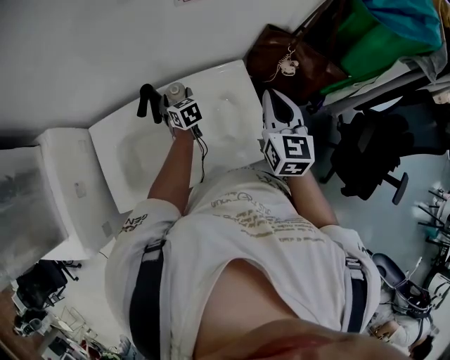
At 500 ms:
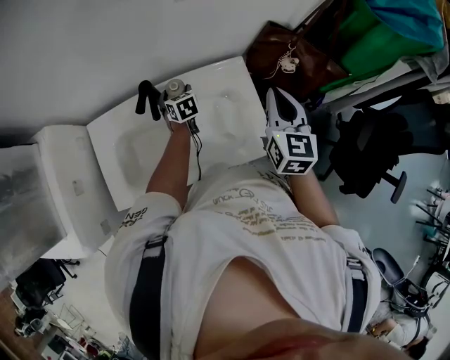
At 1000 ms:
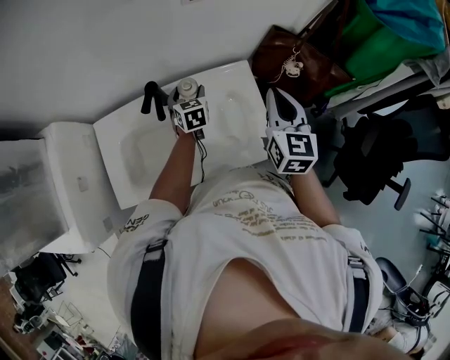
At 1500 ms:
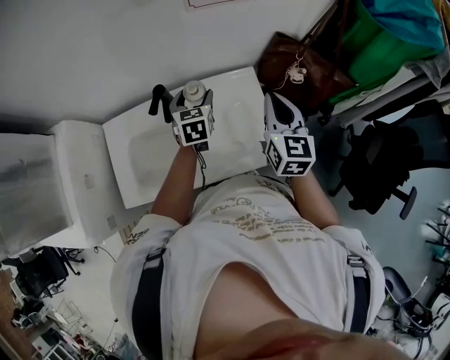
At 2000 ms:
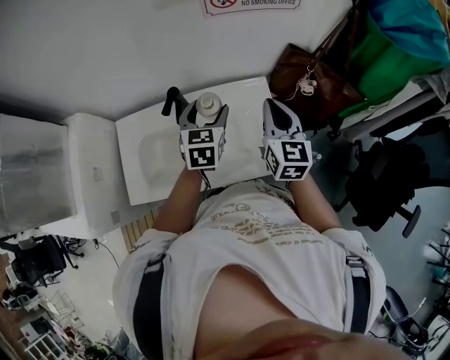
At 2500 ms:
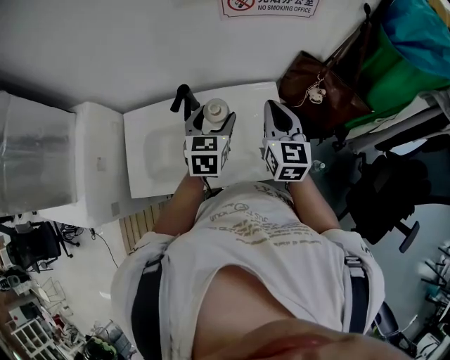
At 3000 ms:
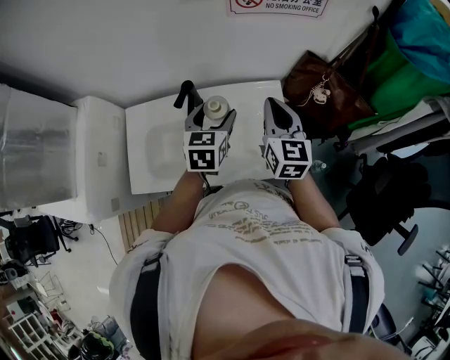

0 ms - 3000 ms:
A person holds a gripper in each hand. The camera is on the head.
0 ms - 1500 ms: The left gripper travels upward and to the right by approximately 15 cm.
1500 ms - 3000 ms: The right gripper travels to the left by roughly 5 cm; the left gripper moves backward and upward, some 10 cm.

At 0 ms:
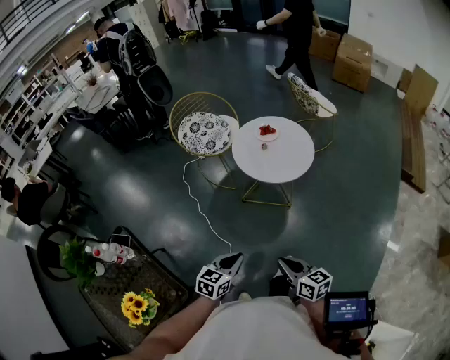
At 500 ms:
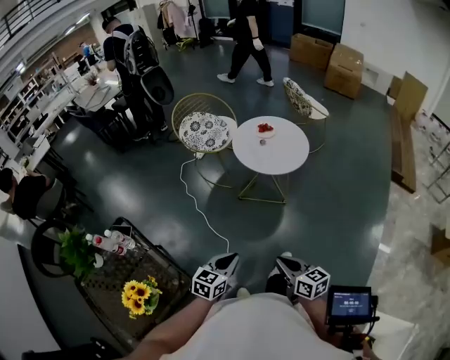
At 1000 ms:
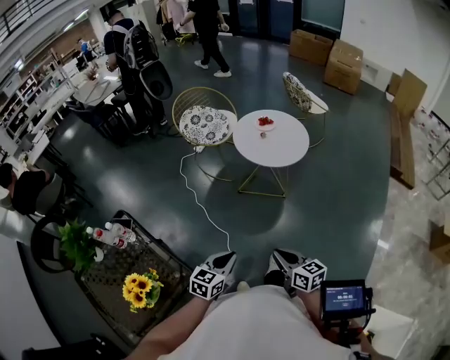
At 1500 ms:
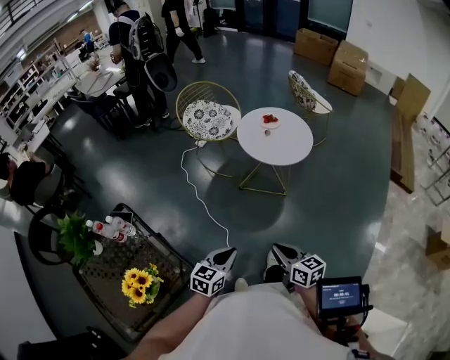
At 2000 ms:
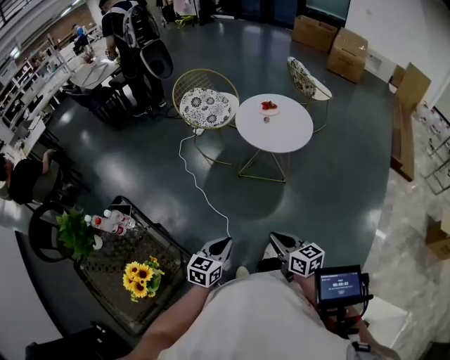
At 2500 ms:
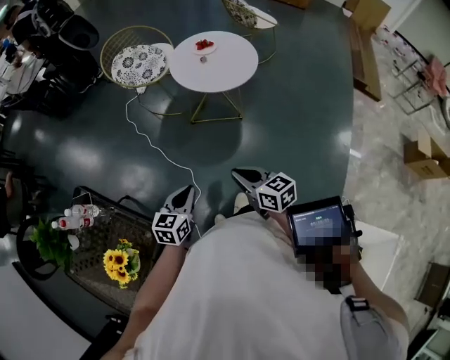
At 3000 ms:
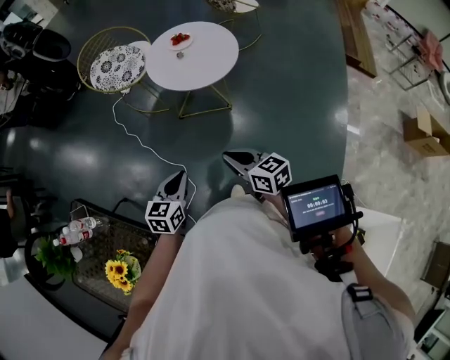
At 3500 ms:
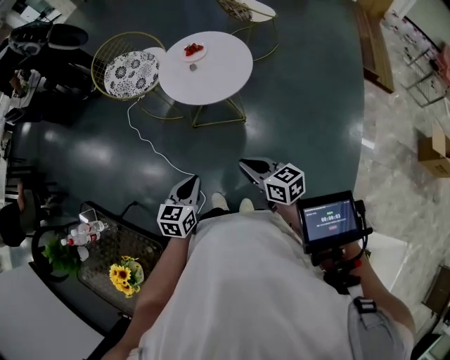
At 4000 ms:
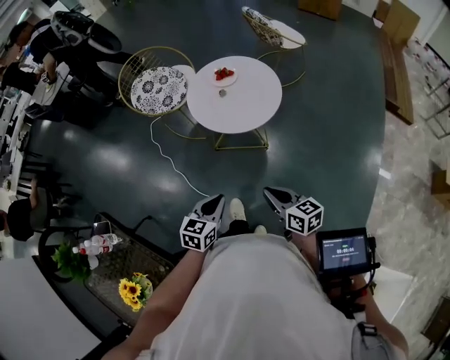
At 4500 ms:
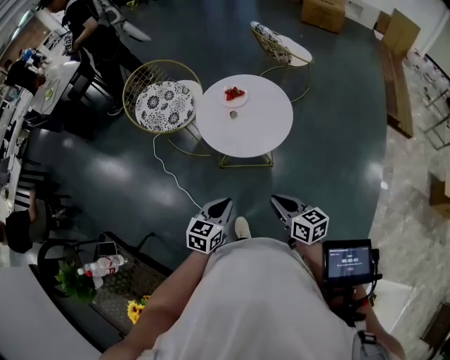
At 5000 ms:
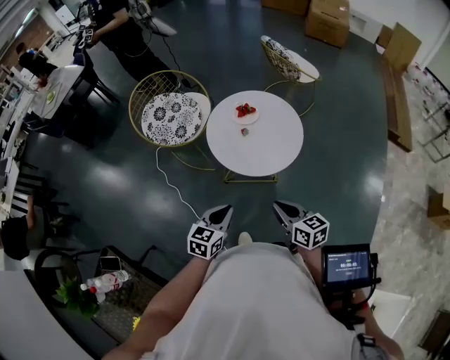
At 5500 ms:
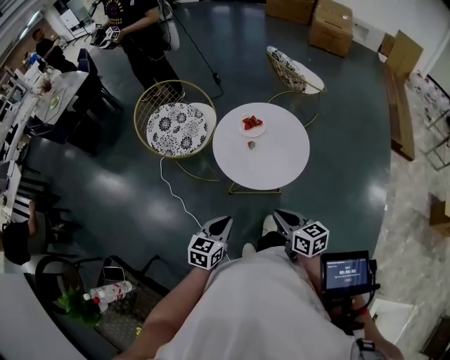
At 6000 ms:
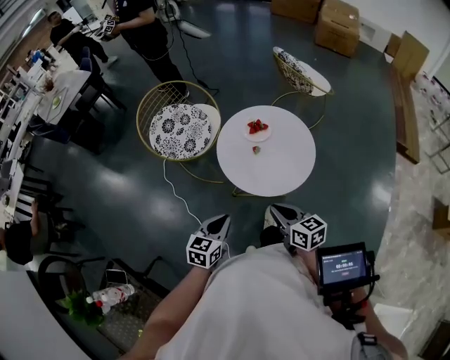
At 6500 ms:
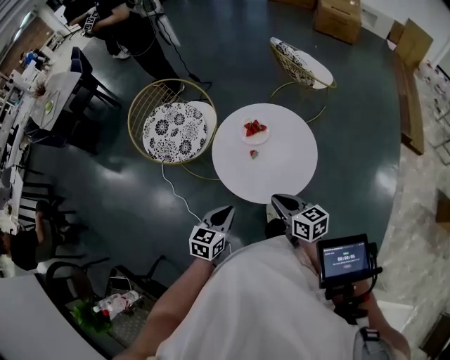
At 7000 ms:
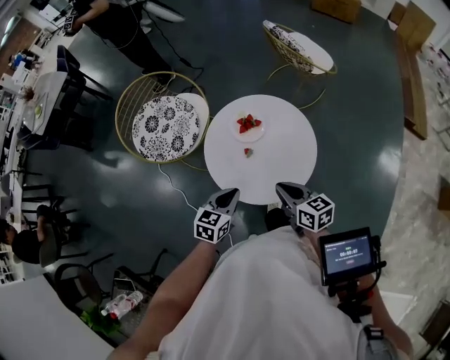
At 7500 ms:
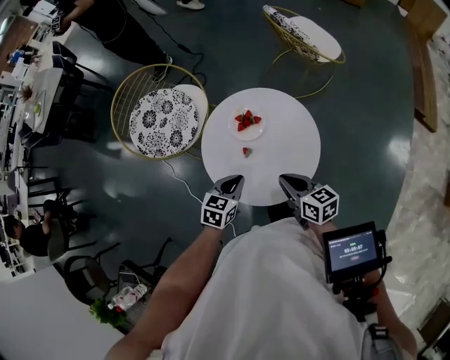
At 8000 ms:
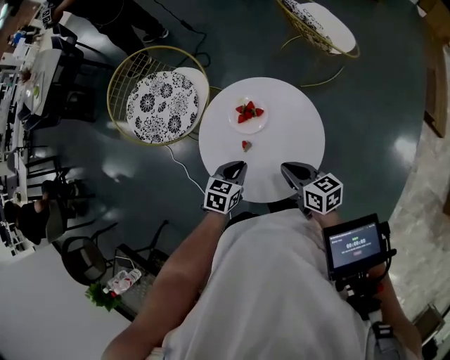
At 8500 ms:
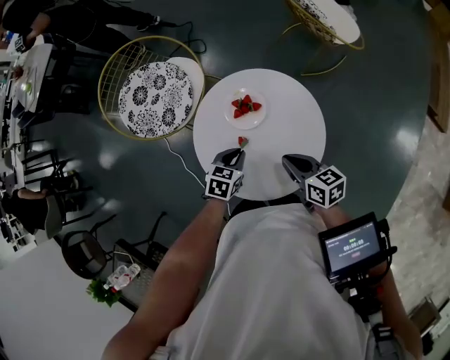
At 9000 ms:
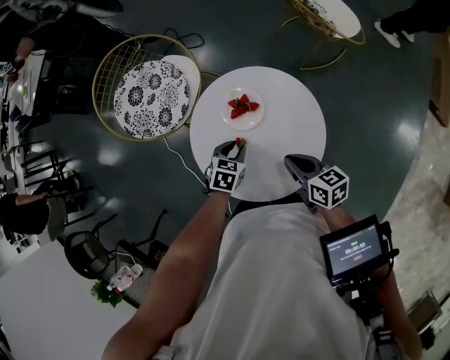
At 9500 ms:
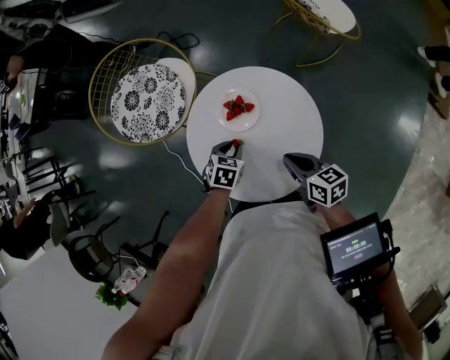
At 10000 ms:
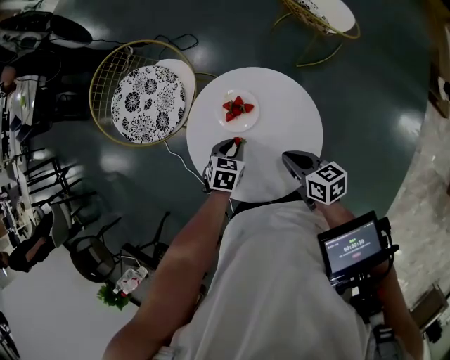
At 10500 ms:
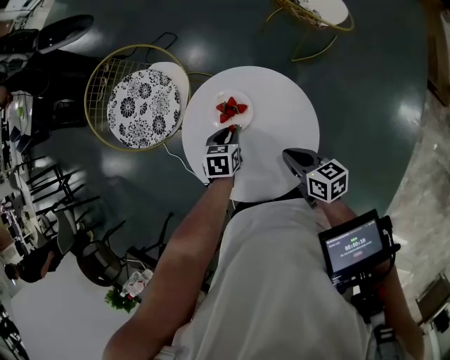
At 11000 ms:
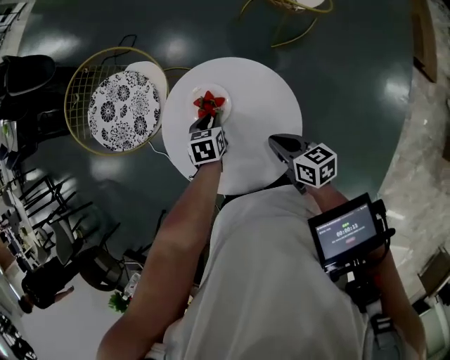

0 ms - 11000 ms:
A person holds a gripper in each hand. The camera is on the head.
0 ms - 2000 ms: The right gripper is displaced to the left and backward by roughly 10 cm; the left gripper moves backward and to the left, about 15 cm.
2000 ms - 3500 ms: The two grippers go approximately 20 cm forward and to the right.
3500 ms - 5500 ms: Both grippers move forward, roughly 20 cm.
5500 ms - 7500 ms: Both grippers move forward, about 25 cm.
7500 ms - 9000 ms: The left gripper moves downward and forward, some 15 cm. The right gripper shifts roughly 10 cm forward and downward.
9000 ms - 11000 ms: The left gripper travels forward by approximately 10 cm.

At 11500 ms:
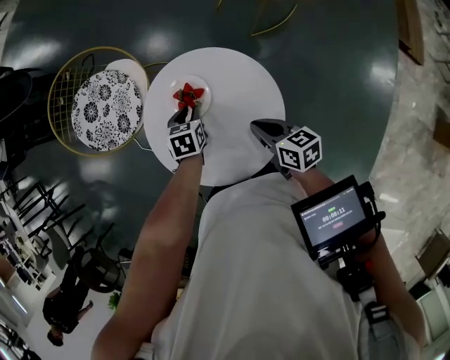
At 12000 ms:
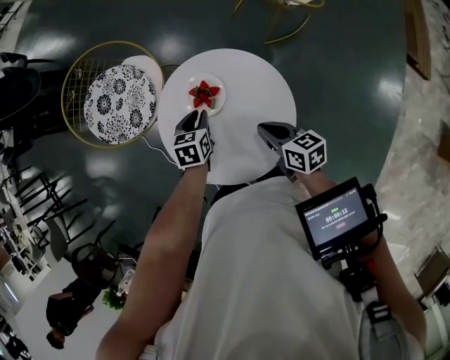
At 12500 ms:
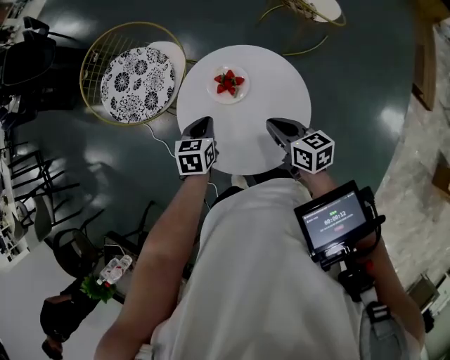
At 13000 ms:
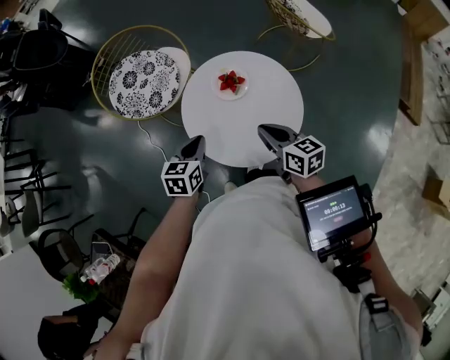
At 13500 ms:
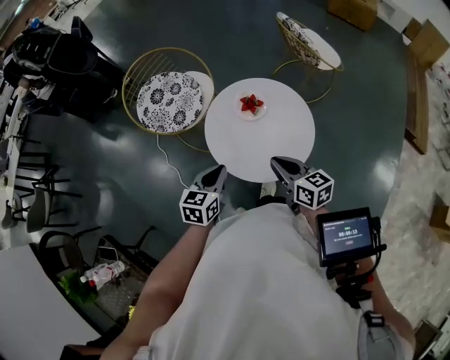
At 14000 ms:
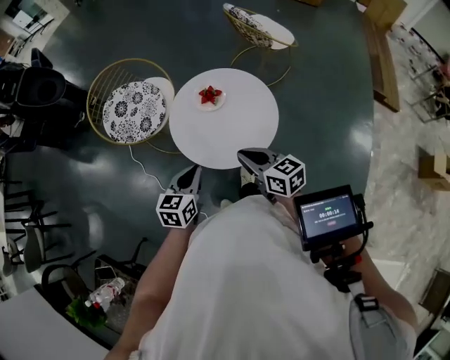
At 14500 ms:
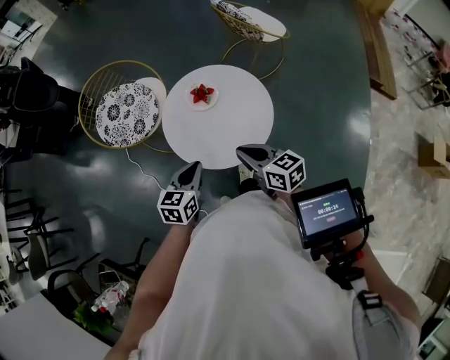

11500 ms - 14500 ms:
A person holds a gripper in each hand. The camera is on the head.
11500 ms - 13000 ms: The right gripper heads upward and to the left, covering roughly 15 cm. The left gripper shifts approximately 25 cm backward, upward and to the left, and swivels about 20 degrees.
13000 ms - 14500 ms: Both grippers travel together backward, roughly 10 cm.

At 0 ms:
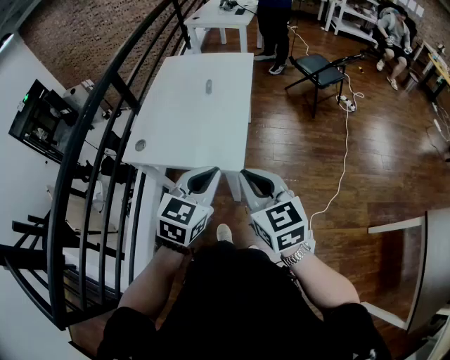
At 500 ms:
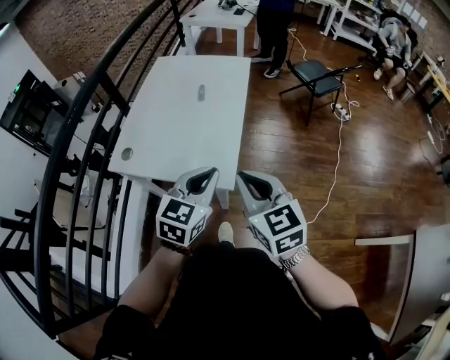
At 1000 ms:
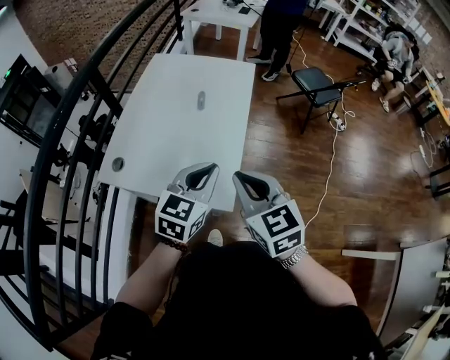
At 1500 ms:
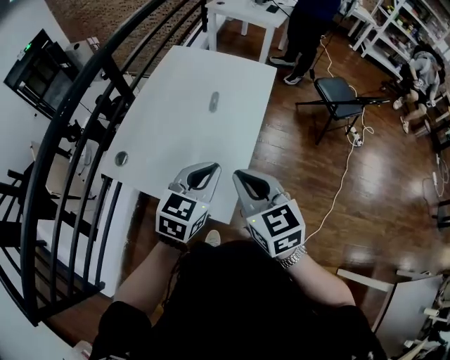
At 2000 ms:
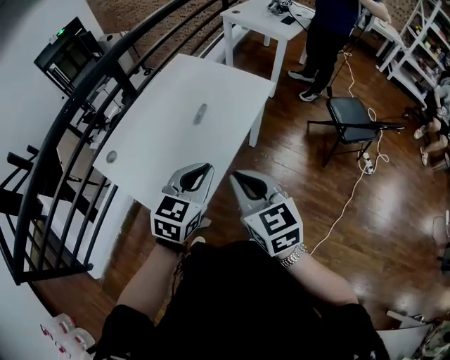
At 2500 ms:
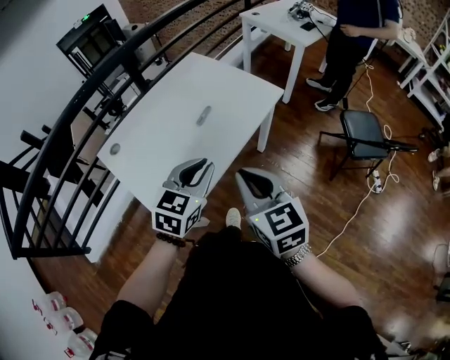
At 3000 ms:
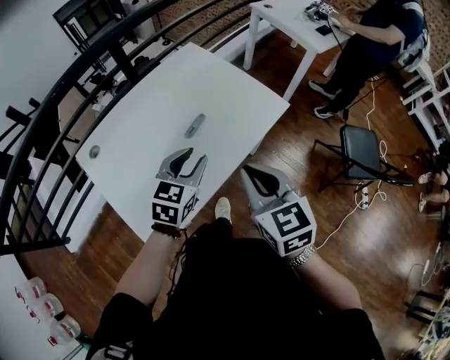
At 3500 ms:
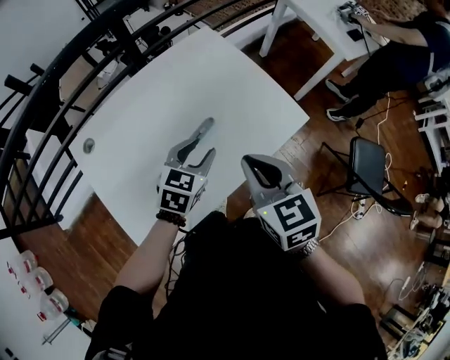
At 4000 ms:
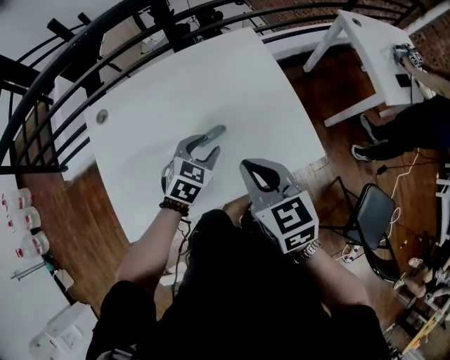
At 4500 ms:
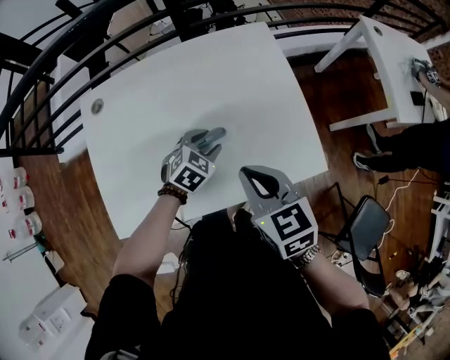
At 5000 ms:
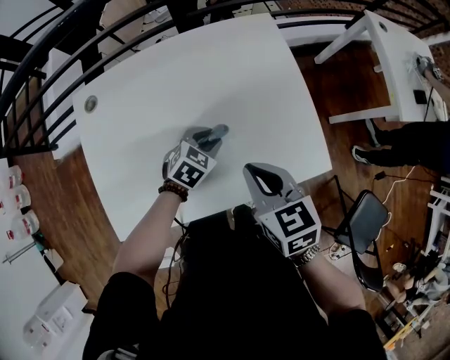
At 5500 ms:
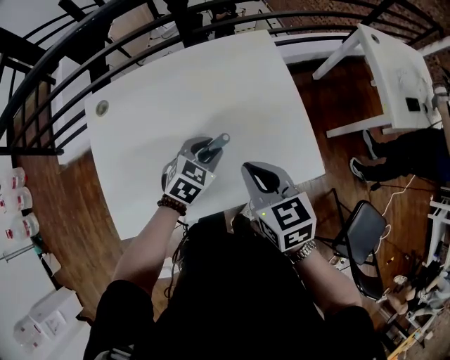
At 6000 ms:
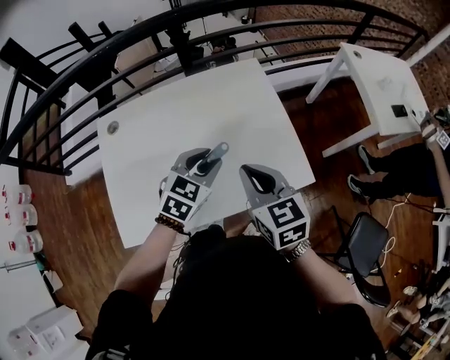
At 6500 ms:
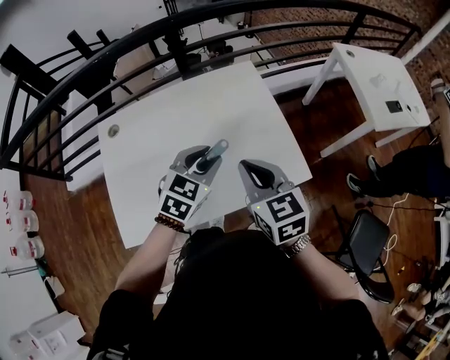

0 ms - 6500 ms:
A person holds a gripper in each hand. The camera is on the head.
0 ms - 2000 ms: The two grippers go some 30 cm forward and to the right. The right gripper rotates some 20 degrees, while the left gripper rotates about 20 degrees.
2000 ms - 4500 ms: The right gripper changes place by roughly 35 cm, and swivels some 50 degrees. The left gripper shifts by some 40 cm, rotates about 40 degrees, and opens.
4500 ms - 6500 ms: The left gripper heads upward, covering some 20 cm; the right gripper is displaced upward by about 5 cm.

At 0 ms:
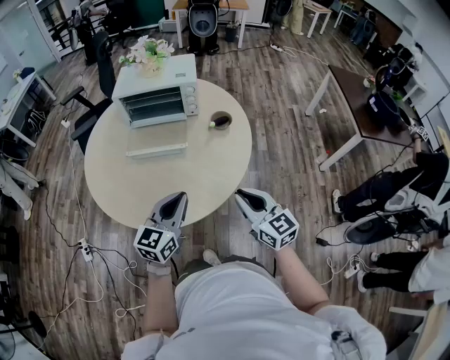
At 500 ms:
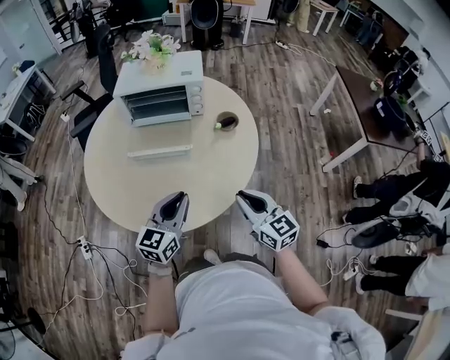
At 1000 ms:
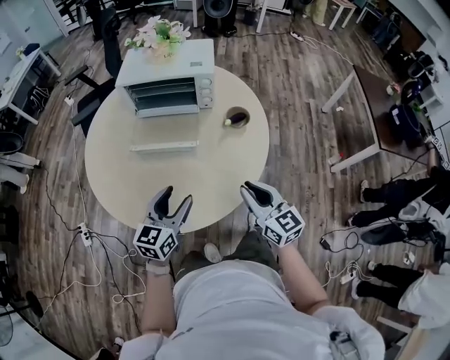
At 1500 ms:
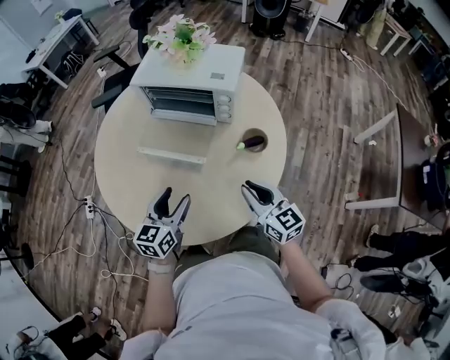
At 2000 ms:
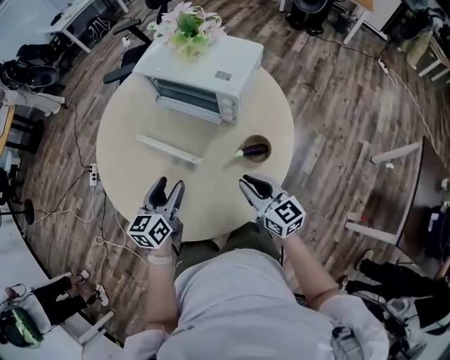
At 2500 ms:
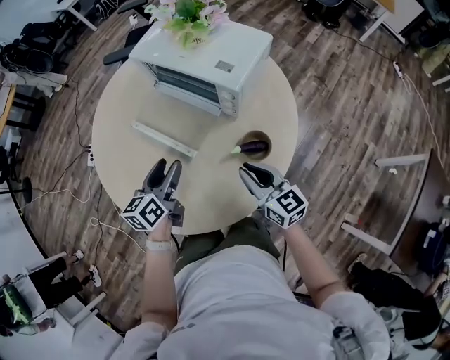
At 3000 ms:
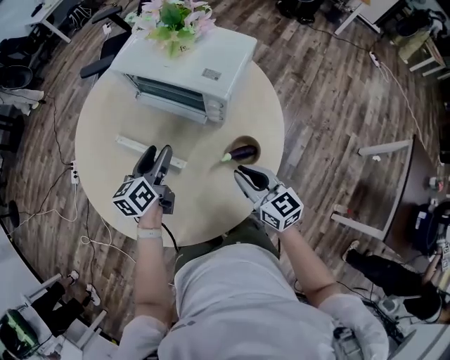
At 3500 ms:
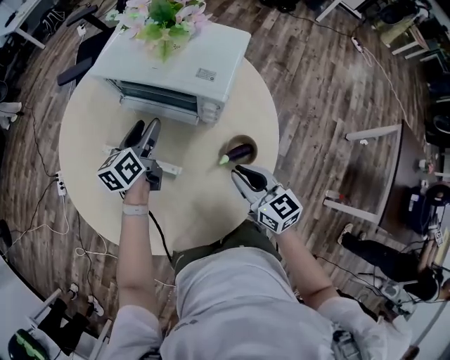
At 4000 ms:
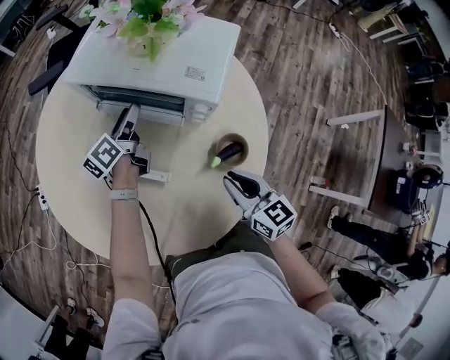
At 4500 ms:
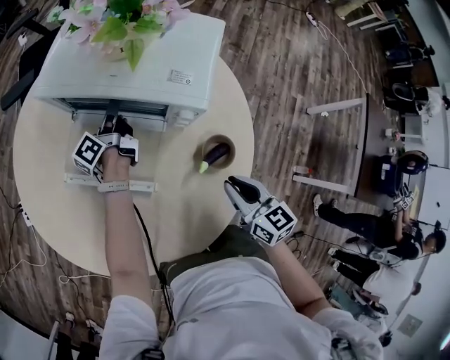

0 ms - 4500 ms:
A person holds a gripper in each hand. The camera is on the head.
0 ms - 2000 ms: The left gripper moves about 30 cm, changes its angle by some 50 degrees, and opens up; the right gripper shifts by approximately 40 cm, and turns by approximately 30 degrees.
2000 ms - 4500 ms: The left gripper moves forward, some 35 cm, and rotates around the line of its fingers by roughly 50 degrees, counterclockwise from behind. Meanwhile the right gripper travels forward and downward by roughly 10 cm, and turns by about 30 degrees.
